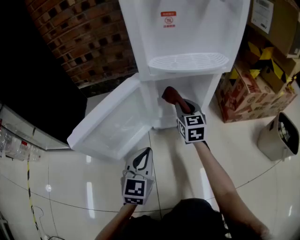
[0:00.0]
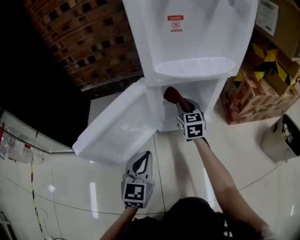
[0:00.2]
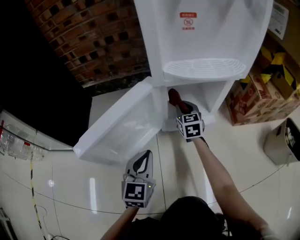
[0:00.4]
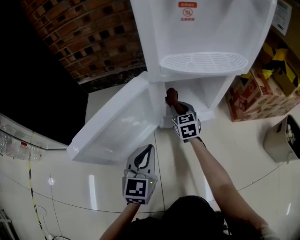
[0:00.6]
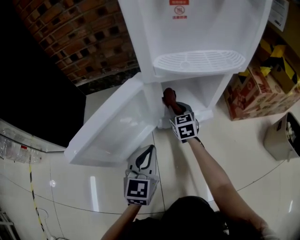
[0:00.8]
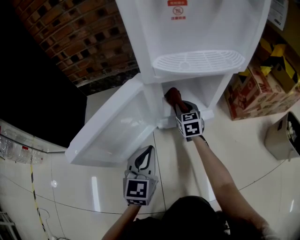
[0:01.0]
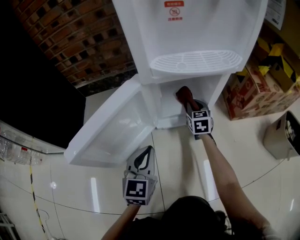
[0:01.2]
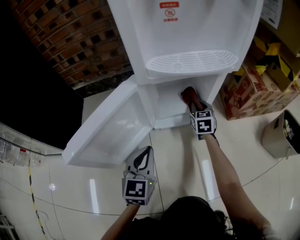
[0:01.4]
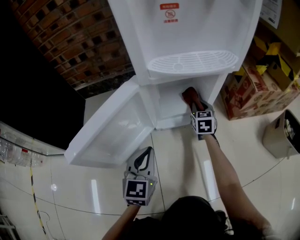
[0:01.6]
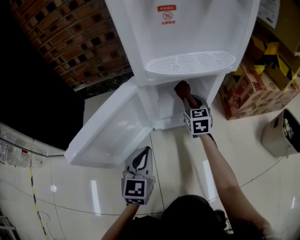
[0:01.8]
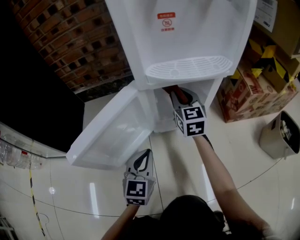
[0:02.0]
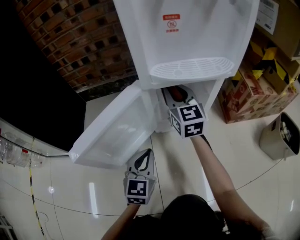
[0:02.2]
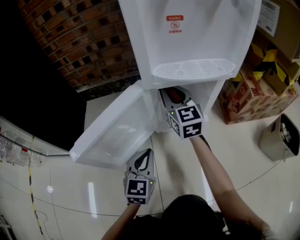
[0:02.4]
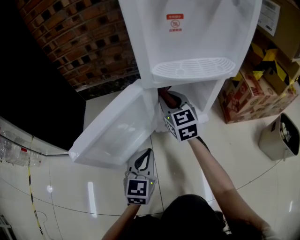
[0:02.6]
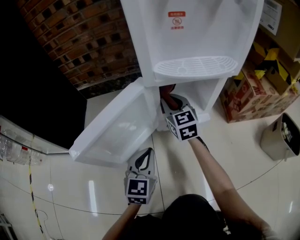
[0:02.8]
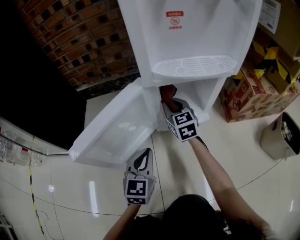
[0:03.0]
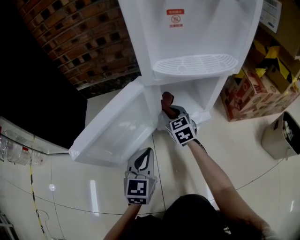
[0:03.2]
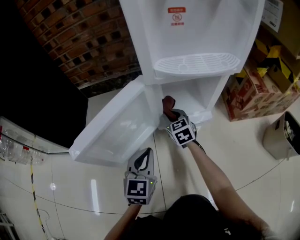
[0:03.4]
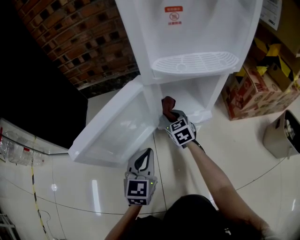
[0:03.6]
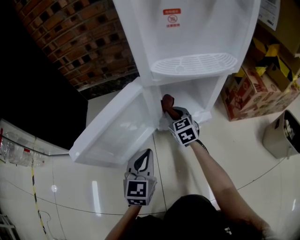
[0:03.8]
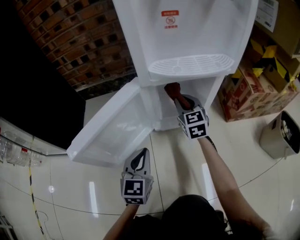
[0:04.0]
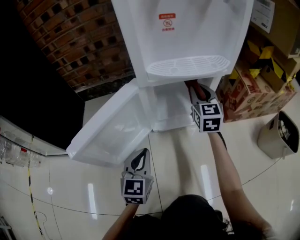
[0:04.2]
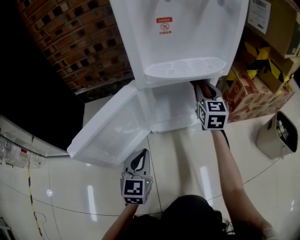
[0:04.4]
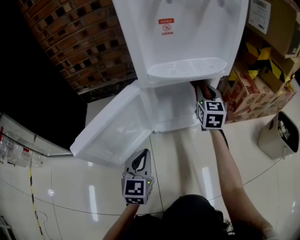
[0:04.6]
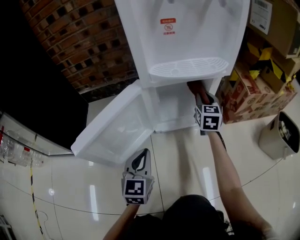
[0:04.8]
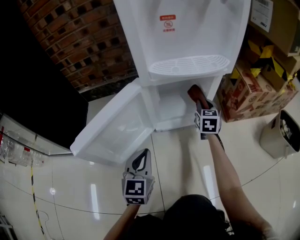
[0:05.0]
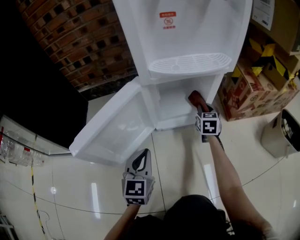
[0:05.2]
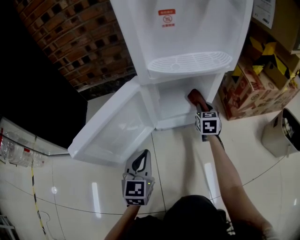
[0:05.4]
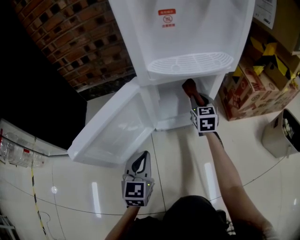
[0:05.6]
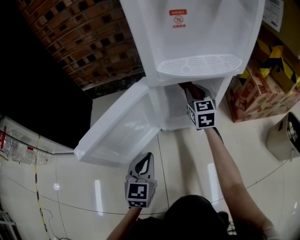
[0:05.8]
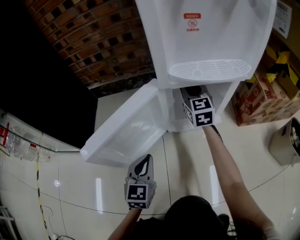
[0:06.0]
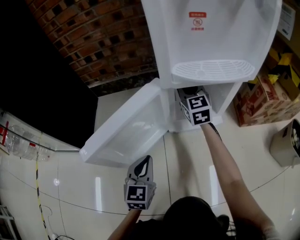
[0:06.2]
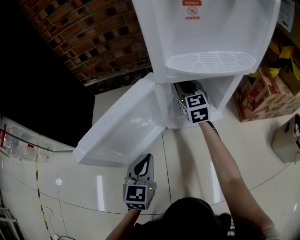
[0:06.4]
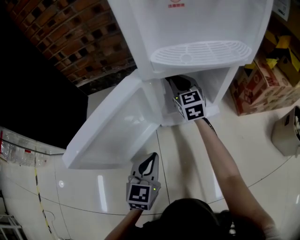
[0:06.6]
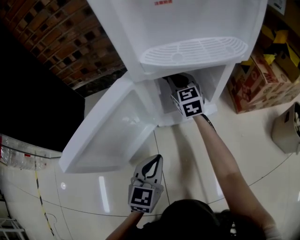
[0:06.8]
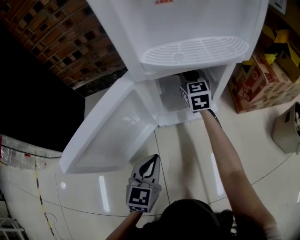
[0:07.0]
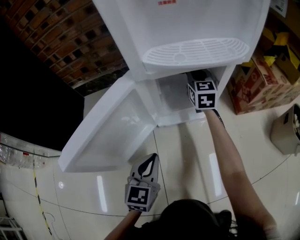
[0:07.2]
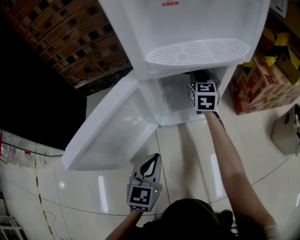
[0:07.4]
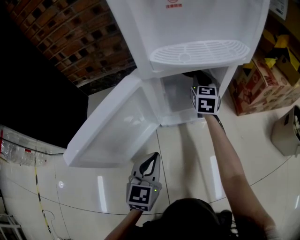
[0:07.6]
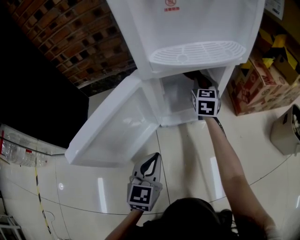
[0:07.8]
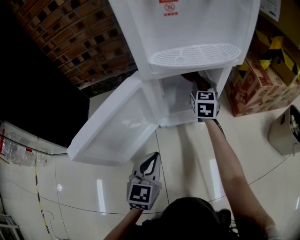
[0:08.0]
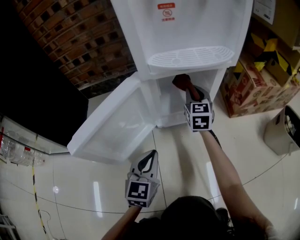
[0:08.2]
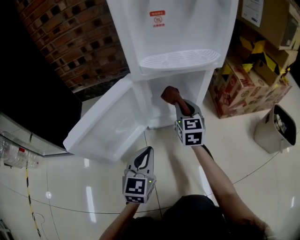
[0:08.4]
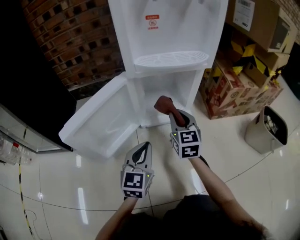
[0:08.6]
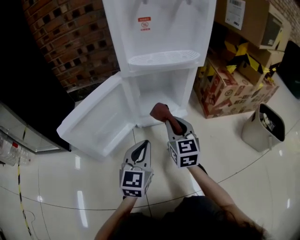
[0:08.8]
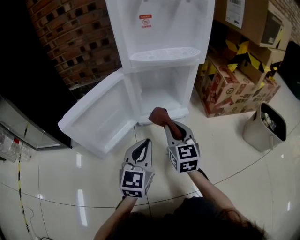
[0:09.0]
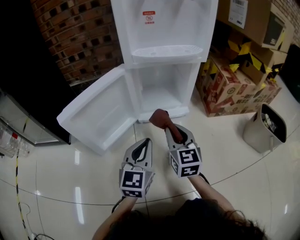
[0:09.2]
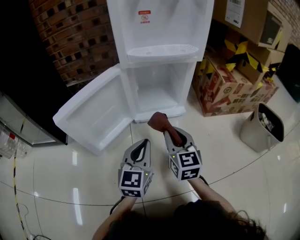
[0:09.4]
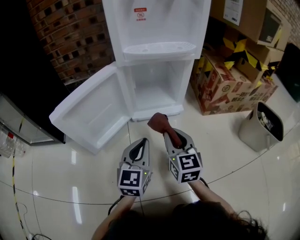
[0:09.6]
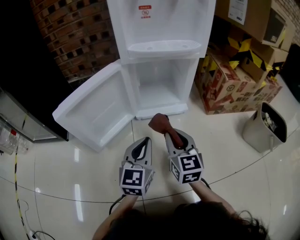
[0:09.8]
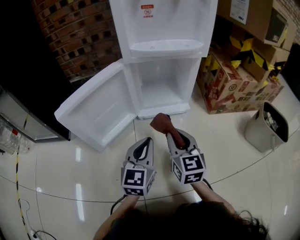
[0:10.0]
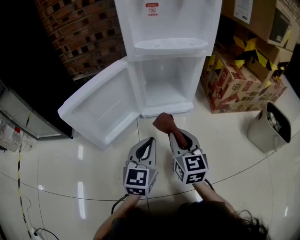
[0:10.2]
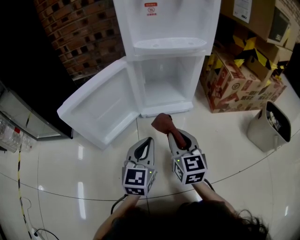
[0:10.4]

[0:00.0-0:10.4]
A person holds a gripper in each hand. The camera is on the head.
0:00.0 to 0:01.4: The right gripper travels downward and to the right by roughly 15 cm.
0:01.4 to 0:03.0: The right gripper travels to the left and upward by some 20 cm, and changes its angle by about 20 degrees.
0:03.0 to 0:04.4: The right gripper is displaced to the right and upward by some 20 cm, and rotates about 20 degrees.
0:04.4 to 0:06.0: The right gripper goes approximately 15 cm to the left, and travels downward and back again, about 15 cm each way; the left gripper shifts by about 5 cm.
0:06.0 to 0:07.4: The right gripper moves to the right and downward, roughly 10 cm. The left gripper moves to the right, approximately 5 cm.
0:07.4 to 0:09.0: The left gripper moves upward and to the right, approximately 10 cm; the right gripper shifts roughly 30 cm backward.
0:09.0 to 0:10.4: The right gripper heads backward, covering approximately 5 cm.

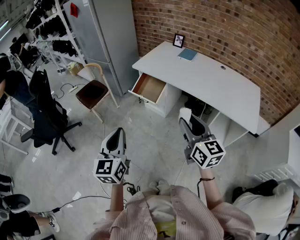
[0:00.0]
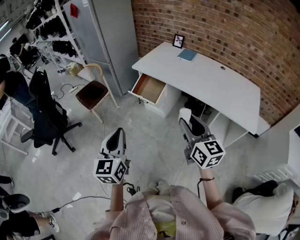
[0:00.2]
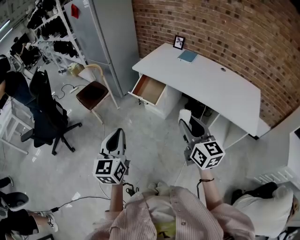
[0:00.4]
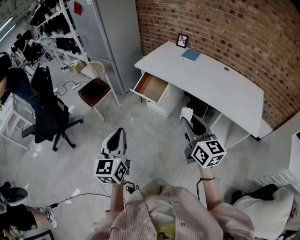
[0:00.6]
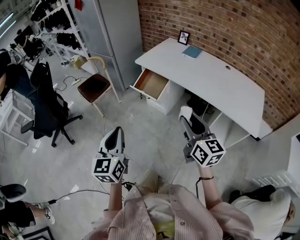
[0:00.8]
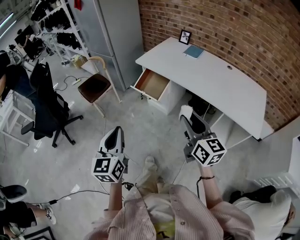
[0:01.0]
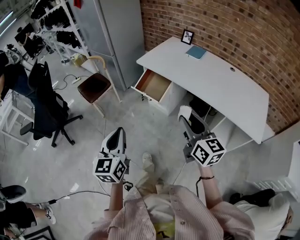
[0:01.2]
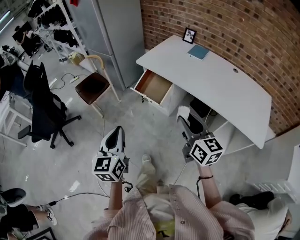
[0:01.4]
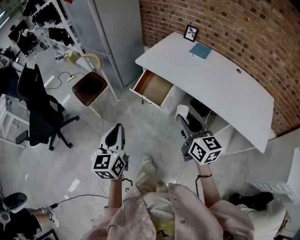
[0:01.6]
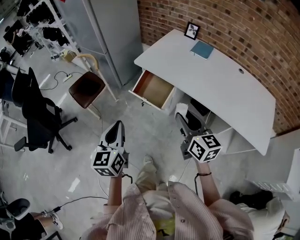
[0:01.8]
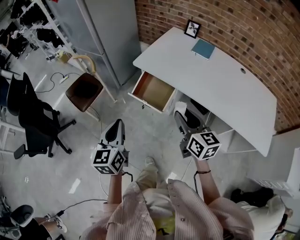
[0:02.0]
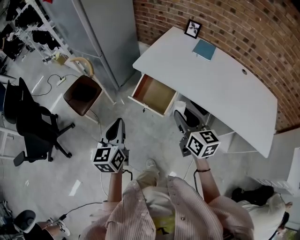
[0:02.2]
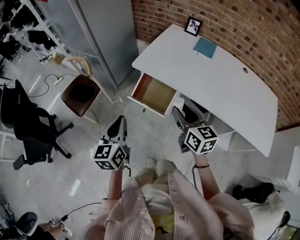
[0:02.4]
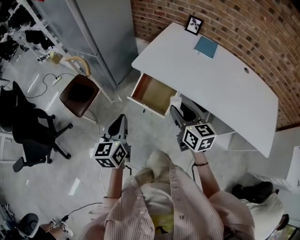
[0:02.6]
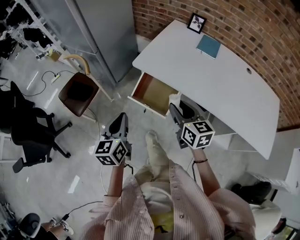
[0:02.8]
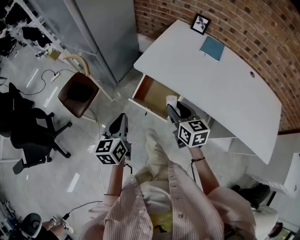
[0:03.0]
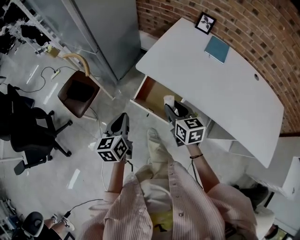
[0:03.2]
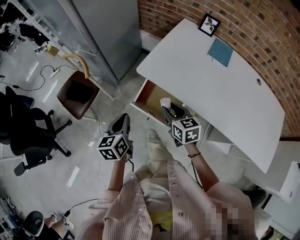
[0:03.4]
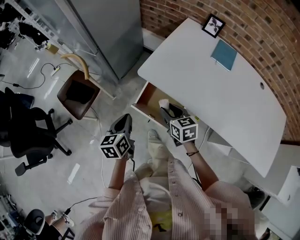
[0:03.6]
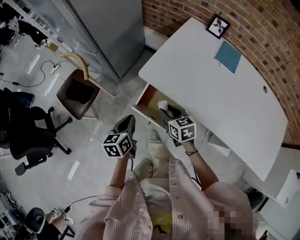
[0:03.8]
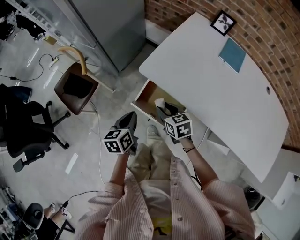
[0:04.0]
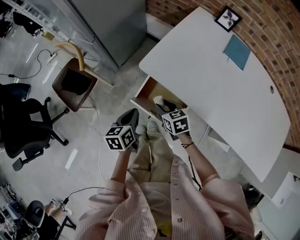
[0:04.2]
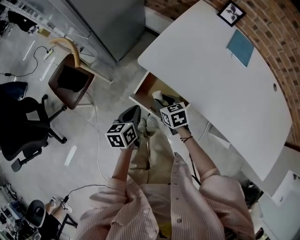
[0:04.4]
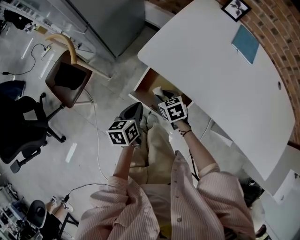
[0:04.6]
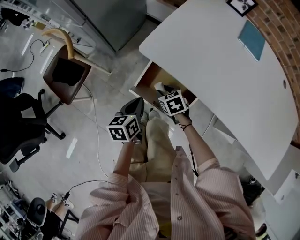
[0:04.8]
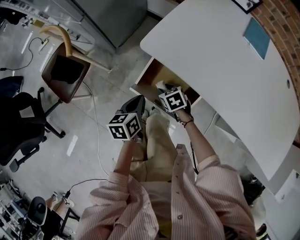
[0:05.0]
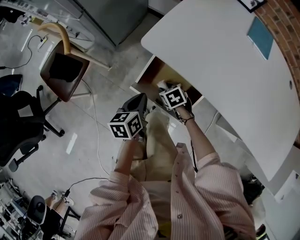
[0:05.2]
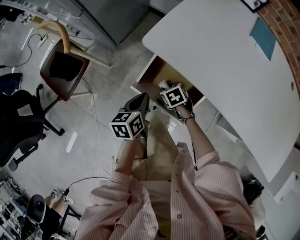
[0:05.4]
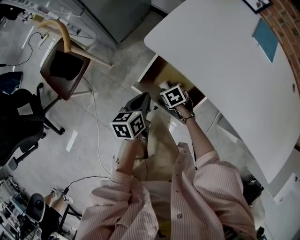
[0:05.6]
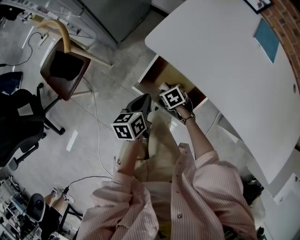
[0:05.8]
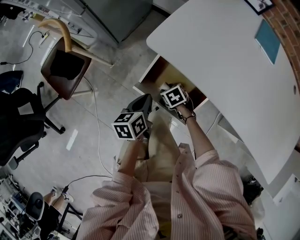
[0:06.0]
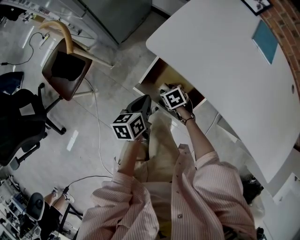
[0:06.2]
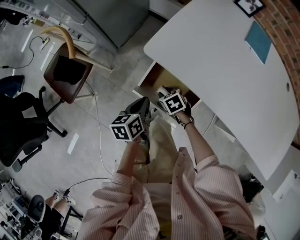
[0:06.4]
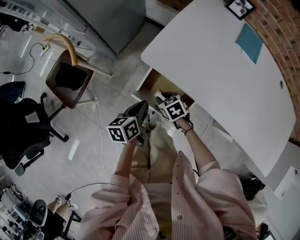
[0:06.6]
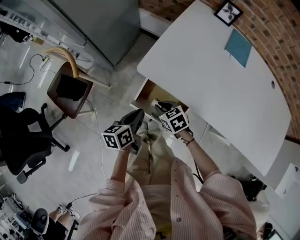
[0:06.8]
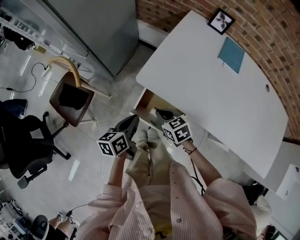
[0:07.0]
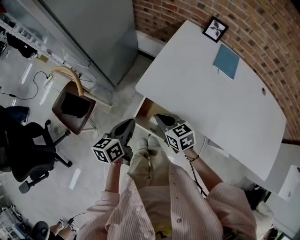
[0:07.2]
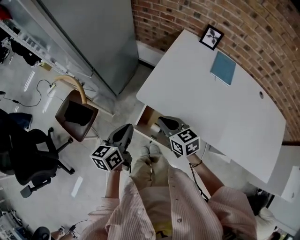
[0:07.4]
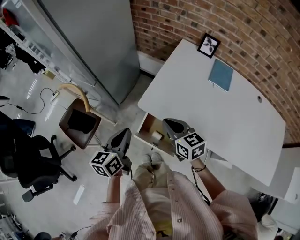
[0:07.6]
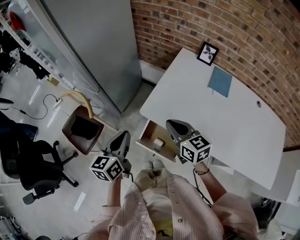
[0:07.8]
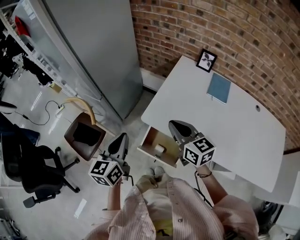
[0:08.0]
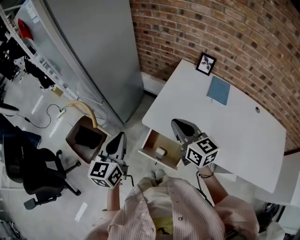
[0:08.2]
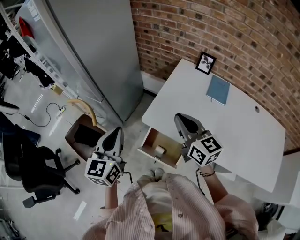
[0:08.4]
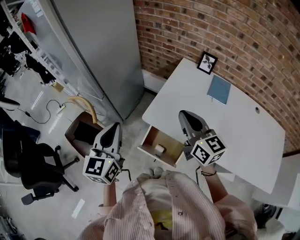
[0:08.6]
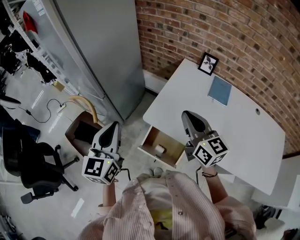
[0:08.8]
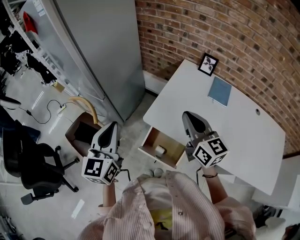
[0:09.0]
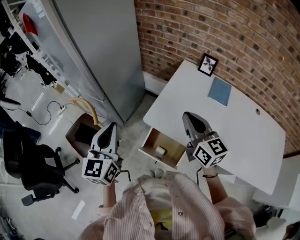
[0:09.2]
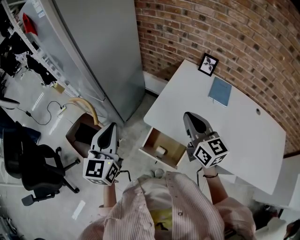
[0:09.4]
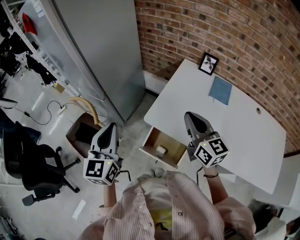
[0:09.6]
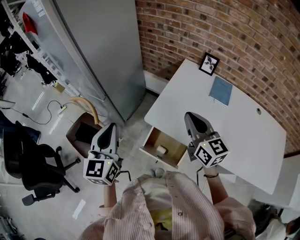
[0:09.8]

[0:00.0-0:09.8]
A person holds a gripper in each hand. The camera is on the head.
0:00.0 to 0:01.4: Both grippers move forward, roughly 10 cm.
0:01.4 to 0:02.8: The grippers both shift forward by about 30 cm.
0:02.8 to 0:04.2: Both grippers move downward and forward, approximately 25 cm. The left gripper changes its angle by roughly 20 degrees, while the right gripper changes its angle by some 30 degrees.
0:04.2 to 0:05.6: The left gripper goes roughly 10 cm downward; the right gripper is displaced downward by approximately 25 cm, and swivels roughly 30 degrees.
0:05.6 to 0:07.0: The right gripper heads upward, covering roughly 25 cm, swivels roughly 30 degrees, and closes its fingers; the left gripper goes roughly 15 cm upward.
0:07.0 to 0:08.4: The grippers both shift upward by approximately 25 cm. The left gripper rotates approximately 40 degrees. The right gripper points its fingers roughly 40 degrees further upward.
0:08.4 to 0:09.8: The grippers move only a little.

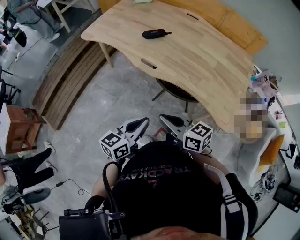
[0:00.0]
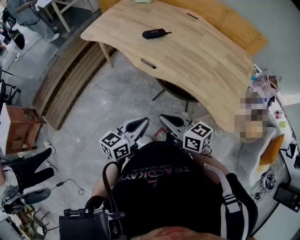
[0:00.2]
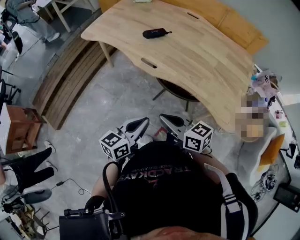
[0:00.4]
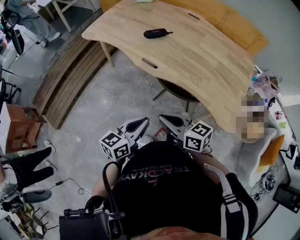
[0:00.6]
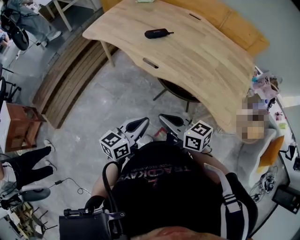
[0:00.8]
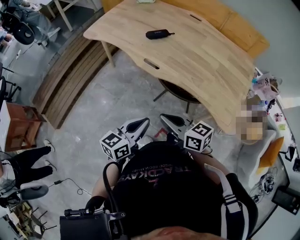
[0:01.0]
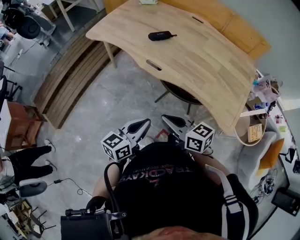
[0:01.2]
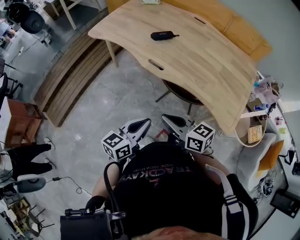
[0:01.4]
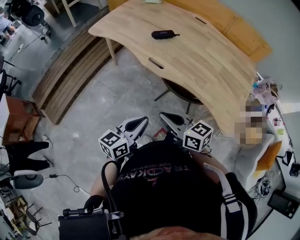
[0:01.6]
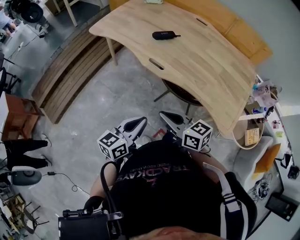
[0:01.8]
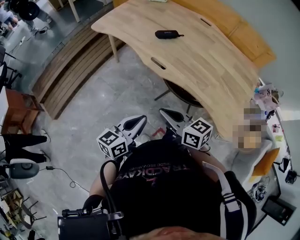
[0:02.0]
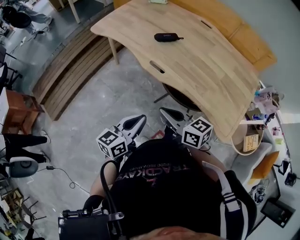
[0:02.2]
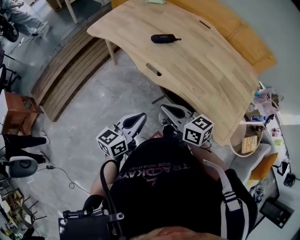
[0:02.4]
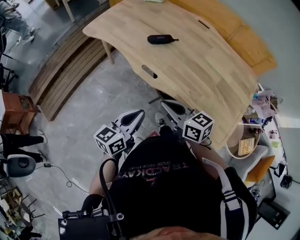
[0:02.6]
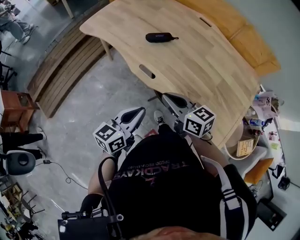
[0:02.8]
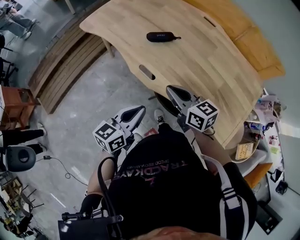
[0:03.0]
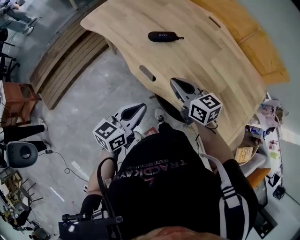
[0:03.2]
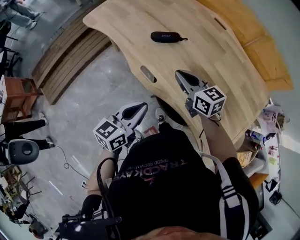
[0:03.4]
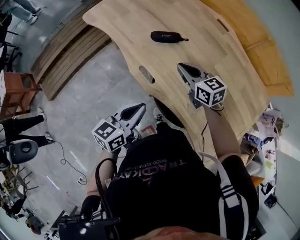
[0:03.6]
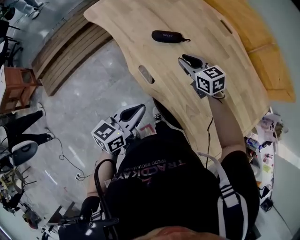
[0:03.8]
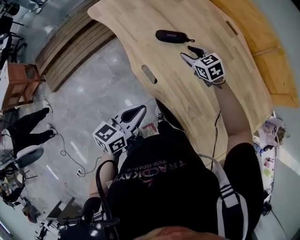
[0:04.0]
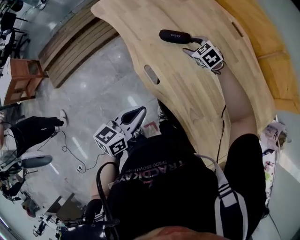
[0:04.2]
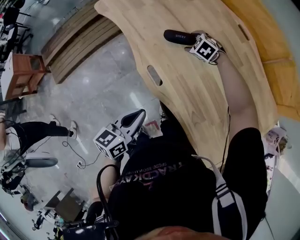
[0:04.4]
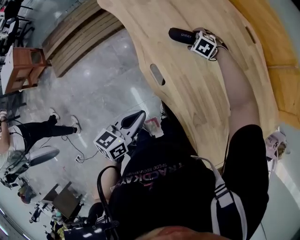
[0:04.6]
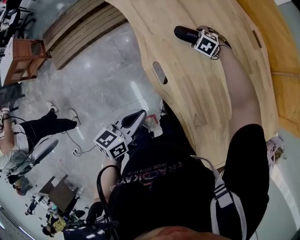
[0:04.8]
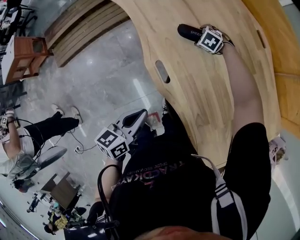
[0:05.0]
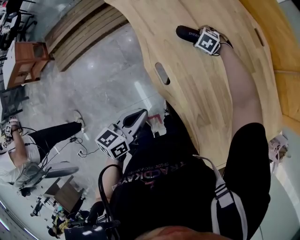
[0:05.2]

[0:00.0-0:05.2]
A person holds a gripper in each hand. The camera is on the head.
0:00.0 to 0:01.8: The grippers move only a little.
0:01.8 to 0:03.4: The right gripper heads forward and to the right, covering approximately 35 cm, while the left gripper moves forward and to the right, approximately 20 cm.
0:03.4 to 0:05.2: The left gripper moves downward, approximately 5 cm, and changes its angle by some 20 degrees. The right gripper heads forward and downward, covering roughly 35 cm, angles its fingers downward, by about 50 degrees, and opens up.
